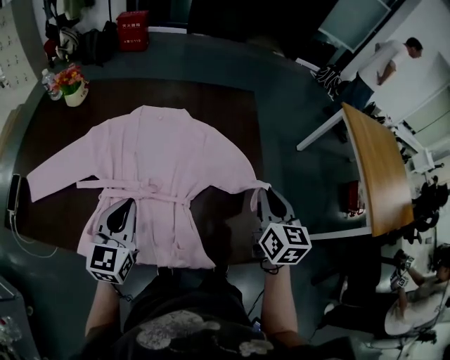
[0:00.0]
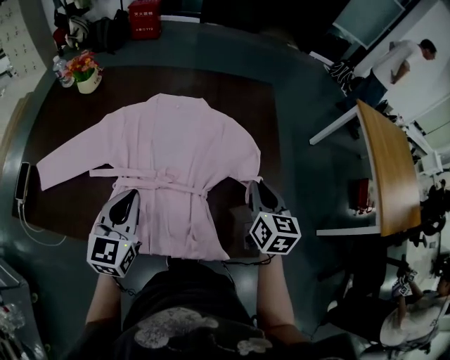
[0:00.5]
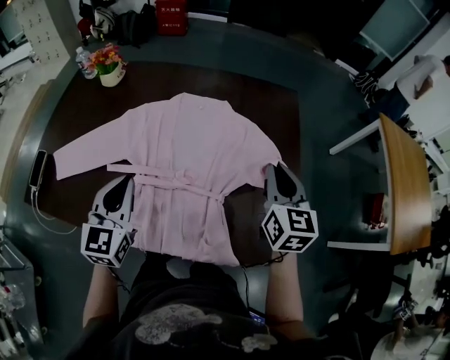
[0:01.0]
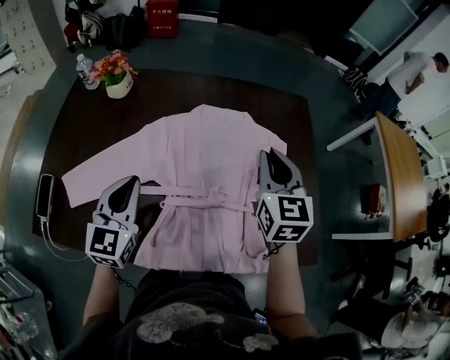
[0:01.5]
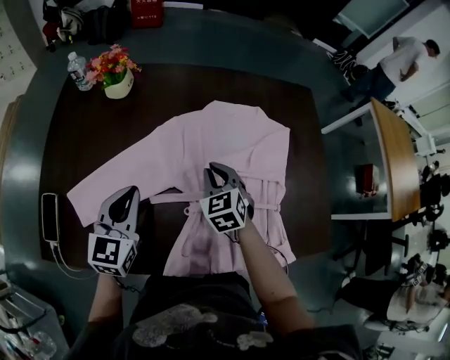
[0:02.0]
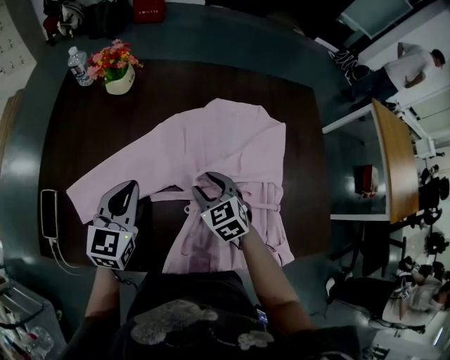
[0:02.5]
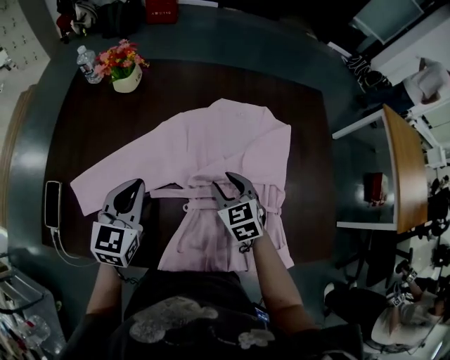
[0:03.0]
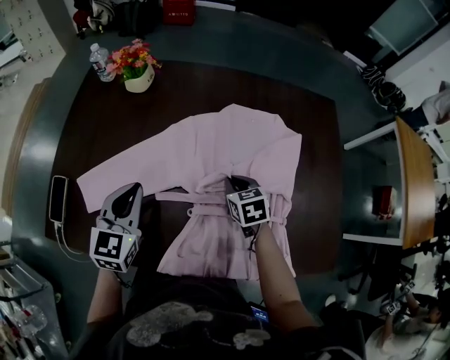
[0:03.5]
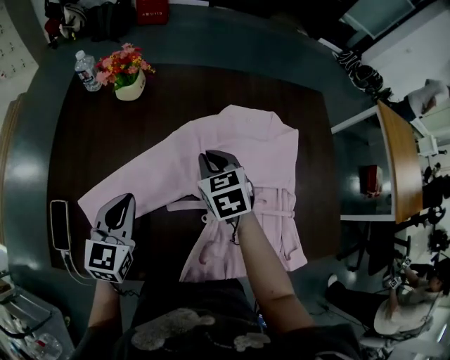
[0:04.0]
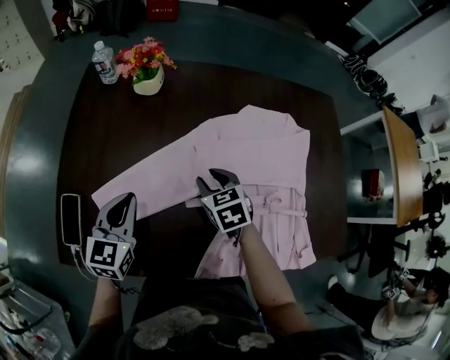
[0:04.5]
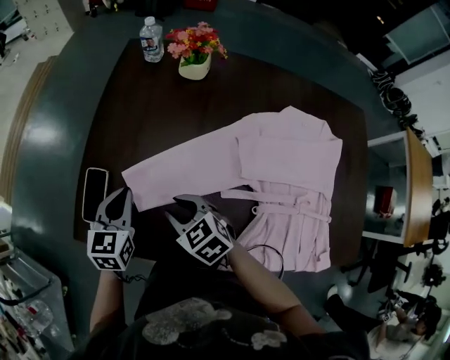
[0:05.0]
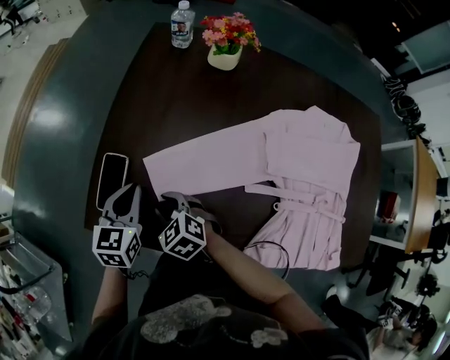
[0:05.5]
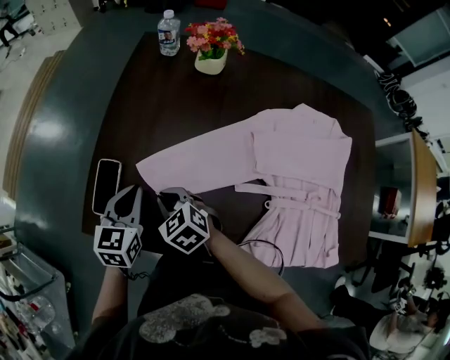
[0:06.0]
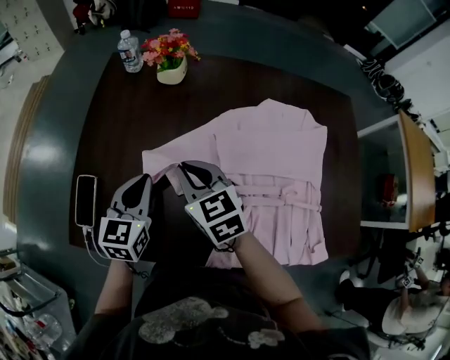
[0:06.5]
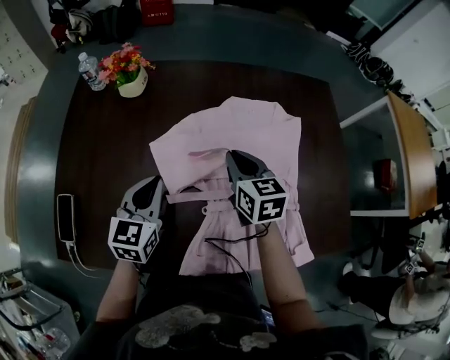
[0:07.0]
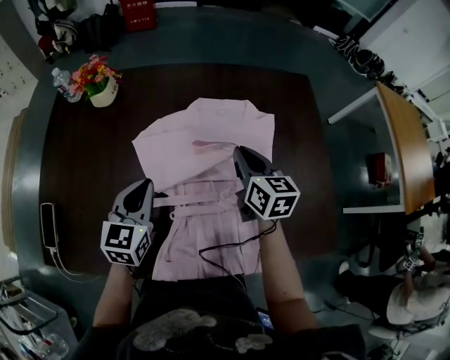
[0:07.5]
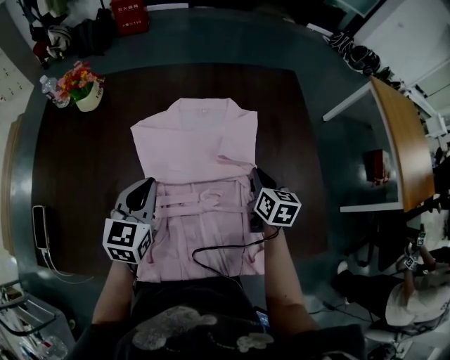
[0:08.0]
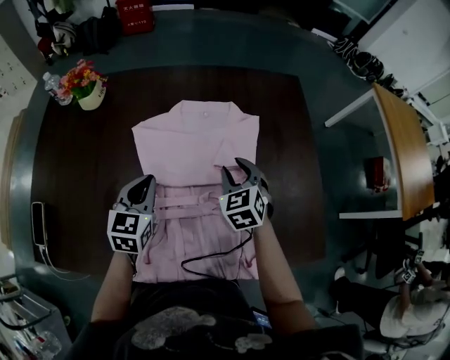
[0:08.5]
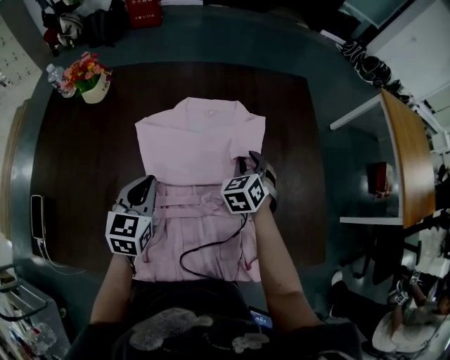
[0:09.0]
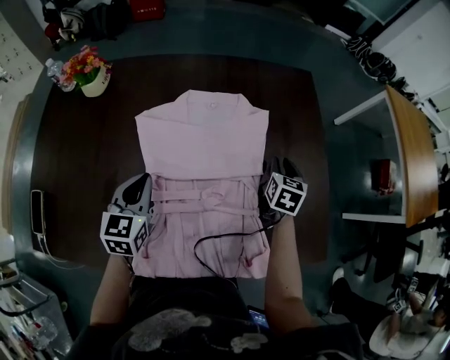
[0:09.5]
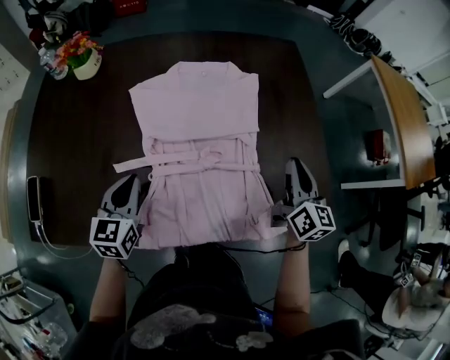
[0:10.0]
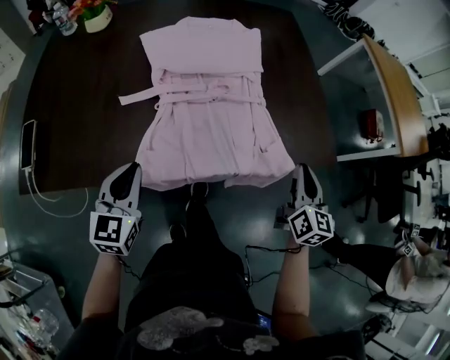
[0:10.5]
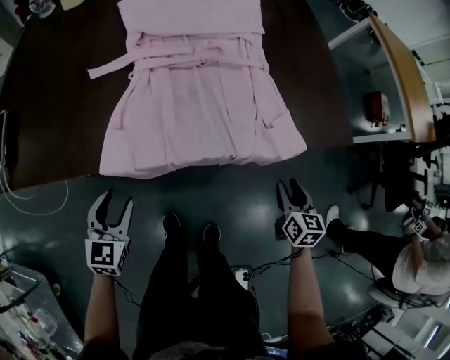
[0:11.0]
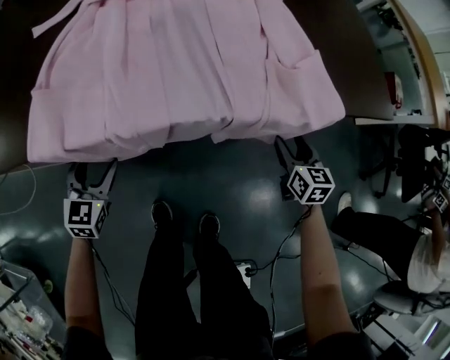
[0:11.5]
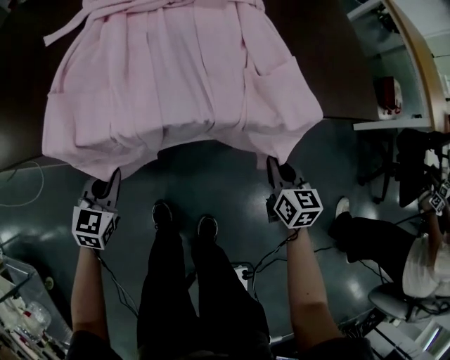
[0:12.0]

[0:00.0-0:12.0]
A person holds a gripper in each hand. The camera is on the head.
0:00.0 to 0:02.0: The left gripper shifts some 30 cm to the left, while the right gripper is displaced to the left by approximately 50 cm, and turns by about 40 degrees.
0:02.0 to 0:04.0: The right gripper shifts approximately 10 cm to the left and forward, and opens and closes again. Meanwhile the left gripper travels to the left by some 5 cm.
0:04.0 to 0:06.0: The left gripper moves roughly 20 cm. Meanwhile the right gripper changes place by some 40 cm, turns by roughly 40 degrees, and opens and closes again.
0:06.0 to 0:08.0: The pair of grippers is taken some 50 cm. The right gripper rotates about 70 degrees. The left gripper swivels some 20 degrees.
0:08.0 to 0:10.0: The left gripper travels backward by approximately 10 cm, while the right gripper travels backward, upward and to the right by roughly 15 cm, changes its angle by approximately 20 degrees, and opens, then closes again.
0:10.0 to 0:12.0: Both grippers move downward and backward, about 40 cm. The right gripper swivels roughly 30 degrees, and opens, then closes once more. Meanwhile the left gripper opens and closes again.

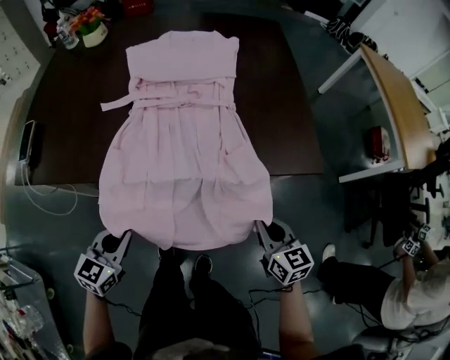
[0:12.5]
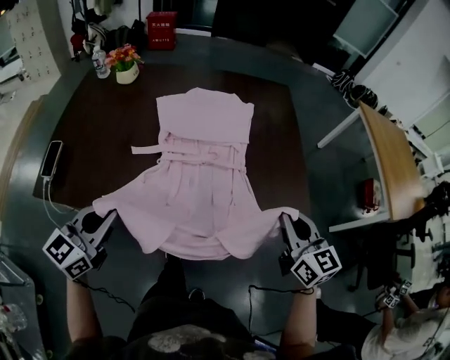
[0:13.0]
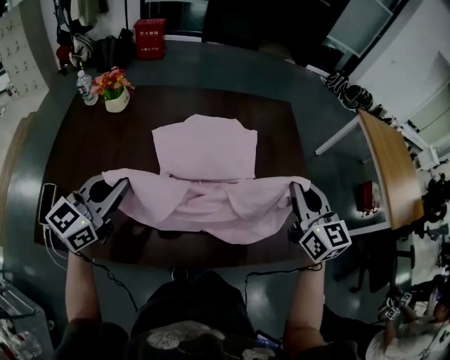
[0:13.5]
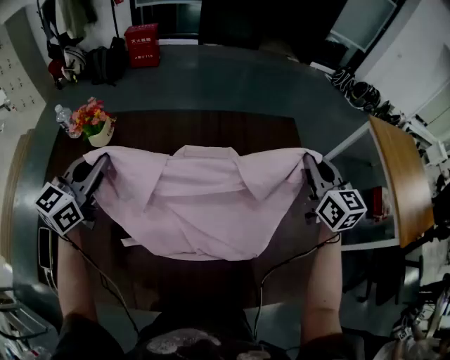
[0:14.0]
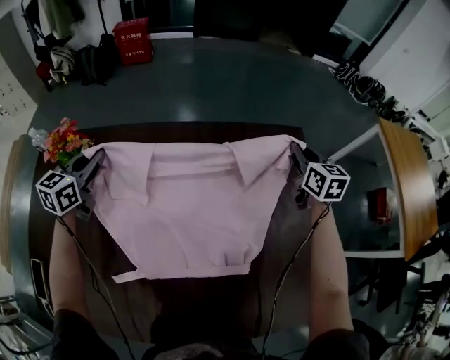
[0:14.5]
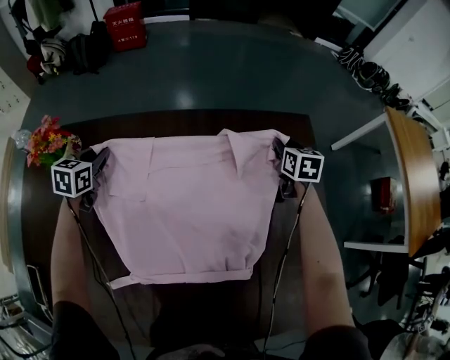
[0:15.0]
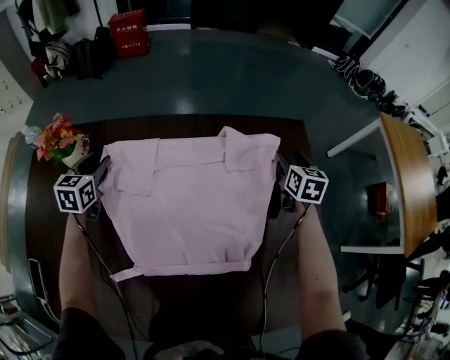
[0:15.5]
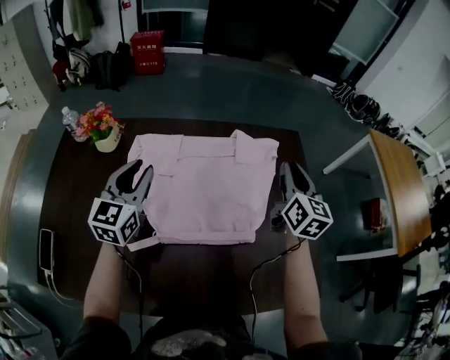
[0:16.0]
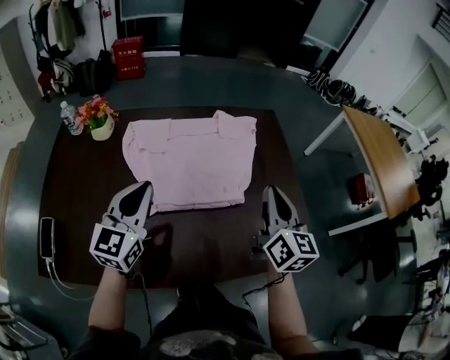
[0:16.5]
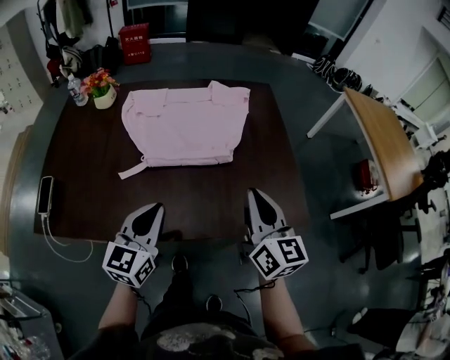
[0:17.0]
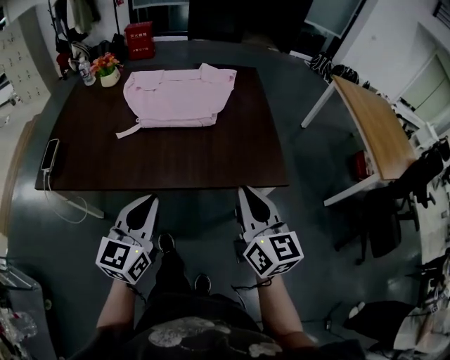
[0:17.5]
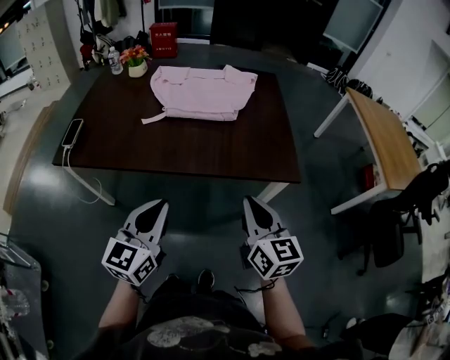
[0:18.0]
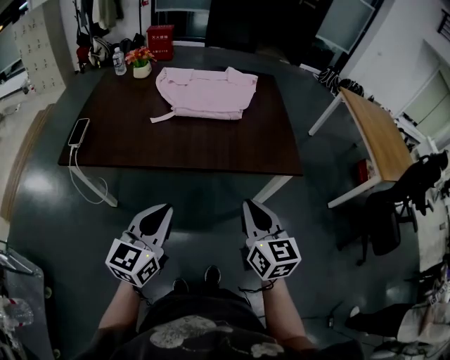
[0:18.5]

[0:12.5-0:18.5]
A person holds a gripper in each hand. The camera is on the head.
0:12.5 to 0:14.5: The two grippers travel together, forward, about 70 cm.
0:14.5 to 0:16.5: The left gripper moves backward and to the right, approximately 35 cm, and opens and closes again, while the right gripper shifts approximately 40 cm backward, rotates about 20 degrees, and opens, then closes again.
0:16.5 to 0:18.5: Both grippers are carried backward, about 50 cm. The right gripper swivels about 20 degrees.

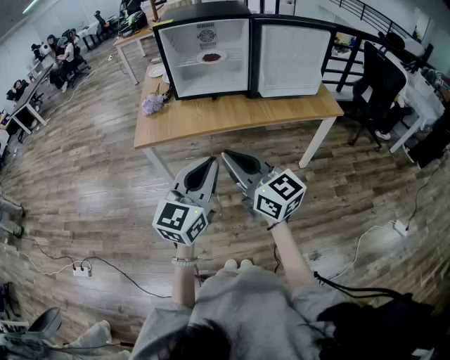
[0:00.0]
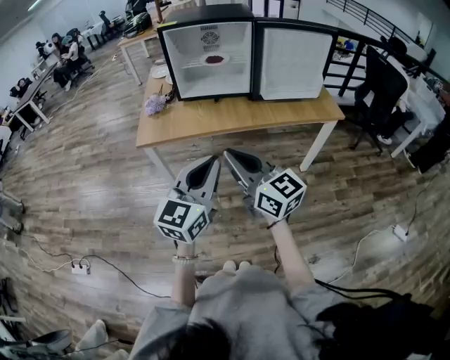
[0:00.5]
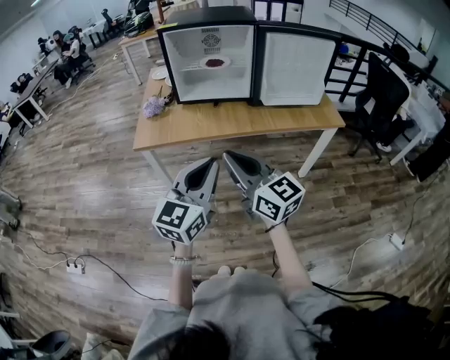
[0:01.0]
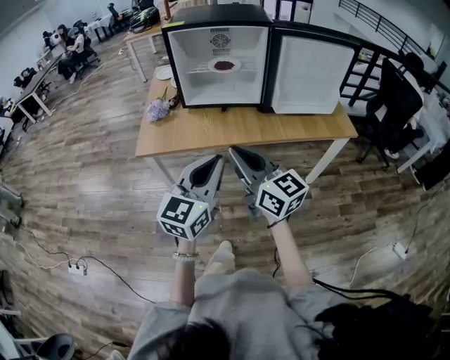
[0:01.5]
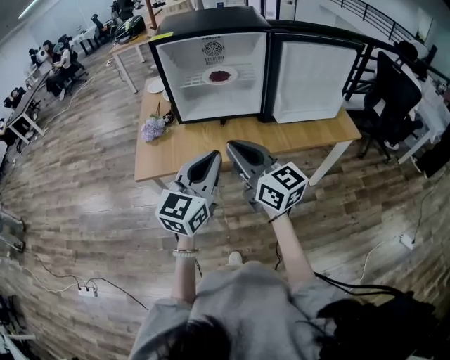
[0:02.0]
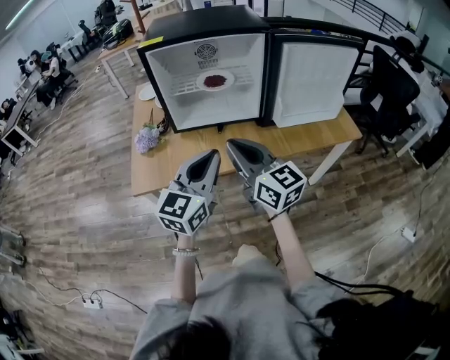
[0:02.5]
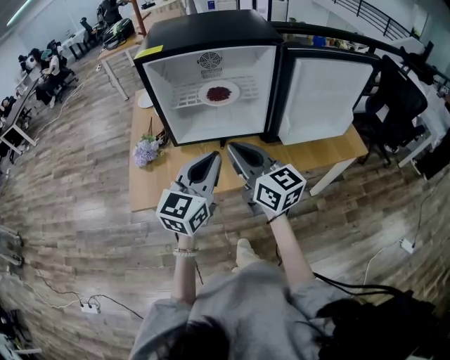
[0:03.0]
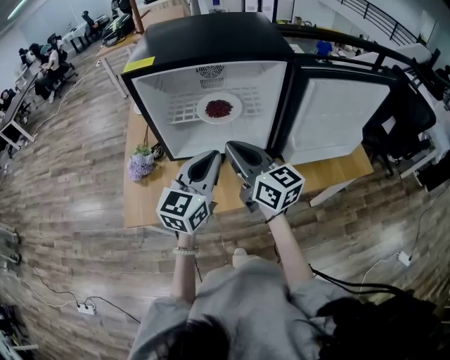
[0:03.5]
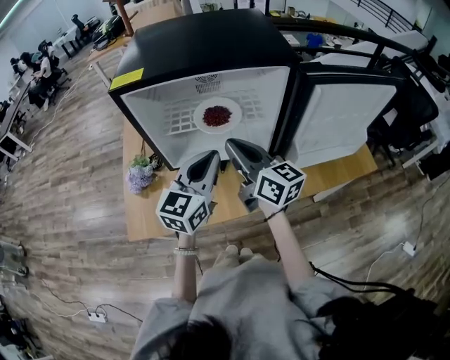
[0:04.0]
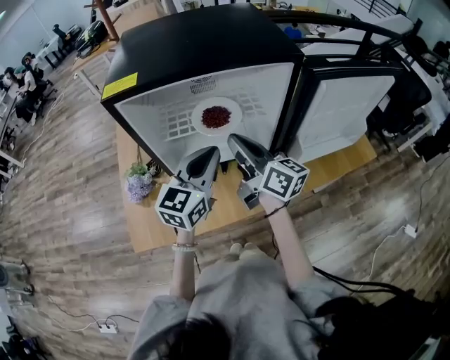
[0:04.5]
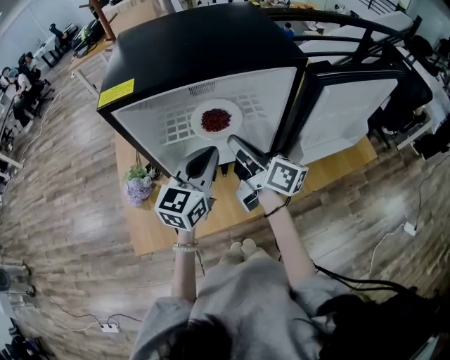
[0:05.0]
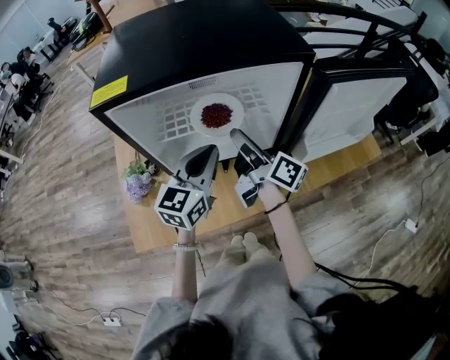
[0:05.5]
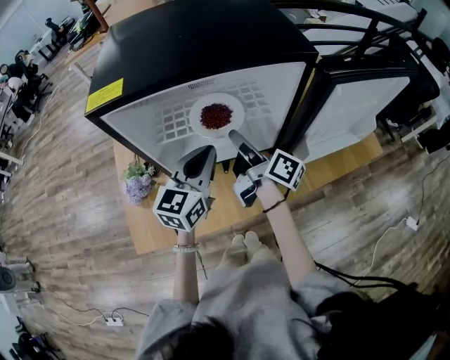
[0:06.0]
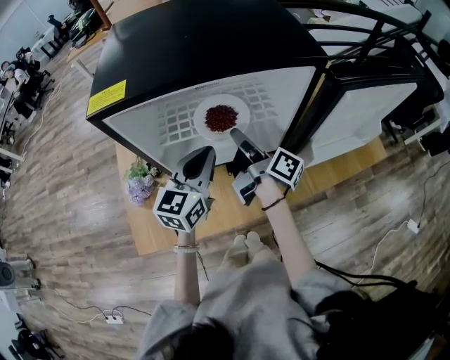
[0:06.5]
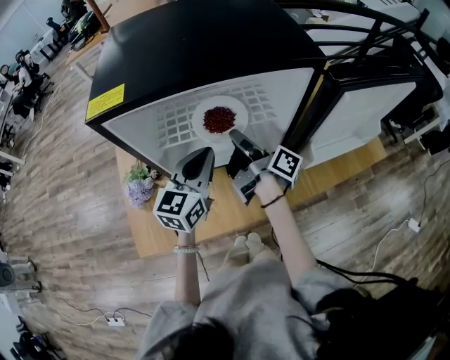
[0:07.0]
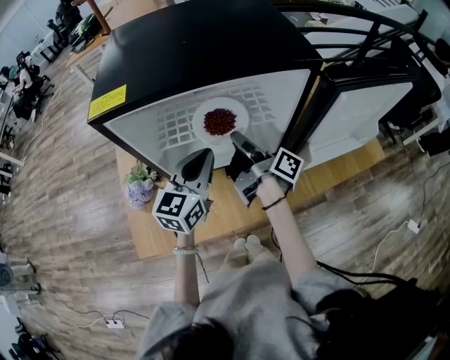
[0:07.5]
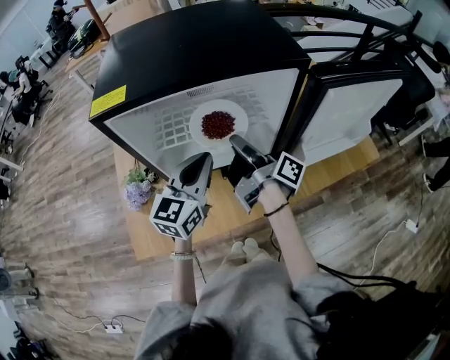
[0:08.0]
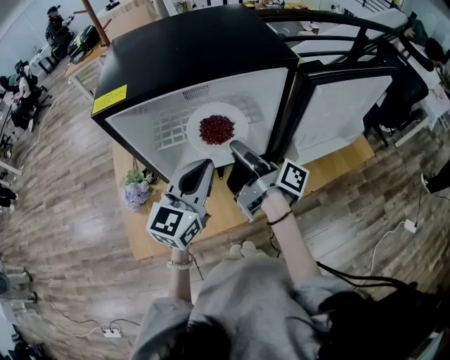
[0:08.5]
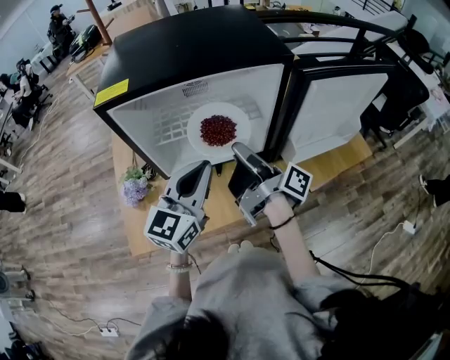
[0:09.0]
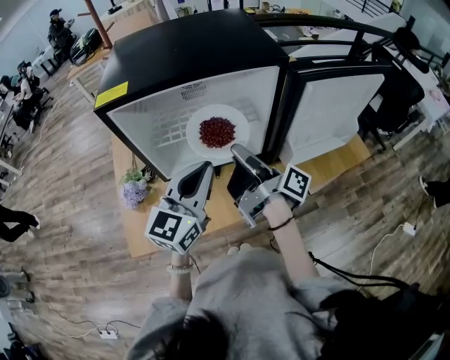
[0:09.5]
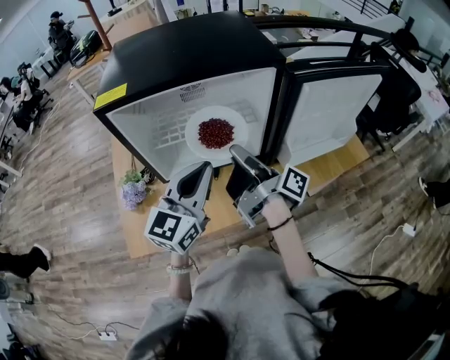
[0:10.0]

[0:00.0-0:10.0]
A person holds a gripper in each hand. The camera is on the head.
0:00.0 to 0:02.0: The grippers both shift forward by about 20 cm.
0:02.0 to 0:04.0: The two grippers go approximately 30 cm forward.
0:04.0 to 0:06.0: The left gripper moves forward, some 5 cm; the right gripper moves downward and forward, about 10 cm, rolls clockwise, seen from behind, by approximately 40 degrees, and opens its fingers.
0:06.0 to 0:08.0: The right gripper closes.
0:08.0 to 0:10.0: The right gripper is displaced backward by some 5 cm, while the left gripper moves backward and upward, approximately 10 cm.
